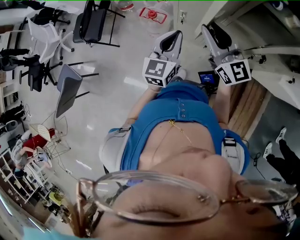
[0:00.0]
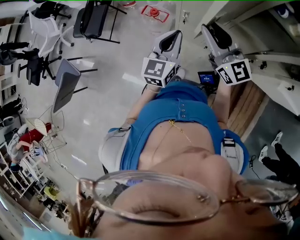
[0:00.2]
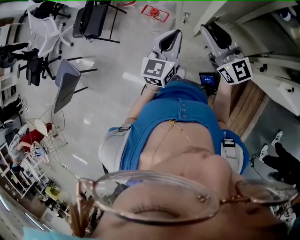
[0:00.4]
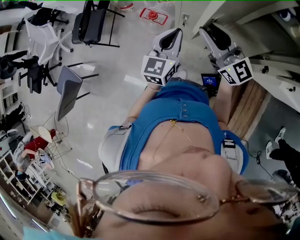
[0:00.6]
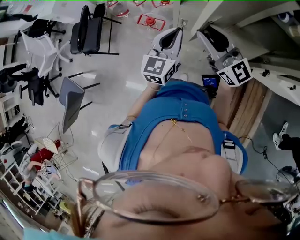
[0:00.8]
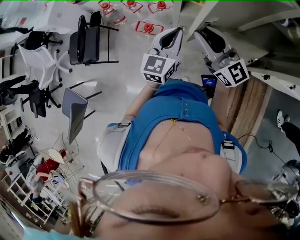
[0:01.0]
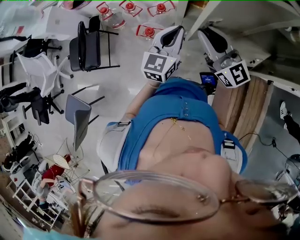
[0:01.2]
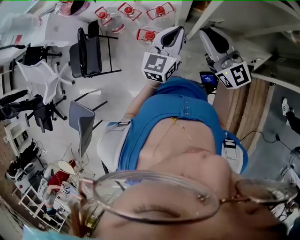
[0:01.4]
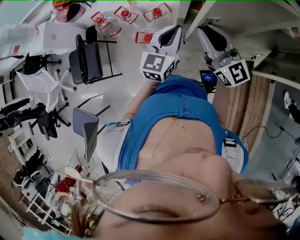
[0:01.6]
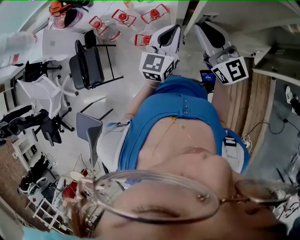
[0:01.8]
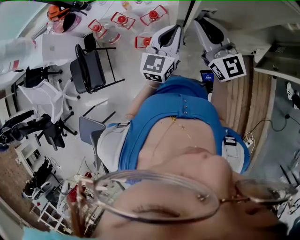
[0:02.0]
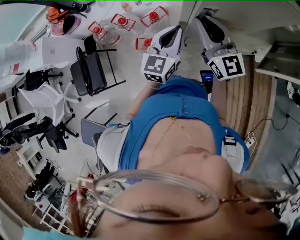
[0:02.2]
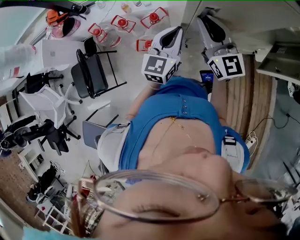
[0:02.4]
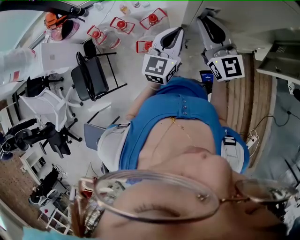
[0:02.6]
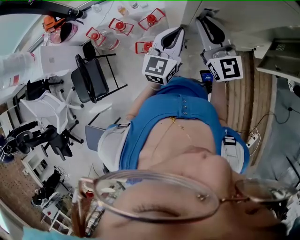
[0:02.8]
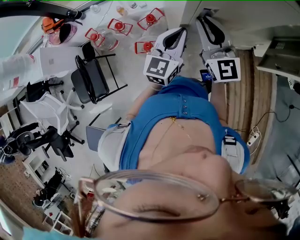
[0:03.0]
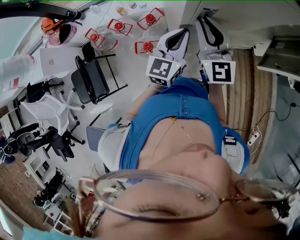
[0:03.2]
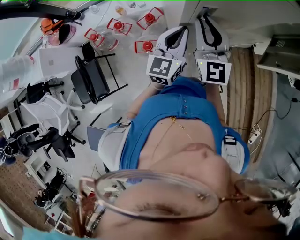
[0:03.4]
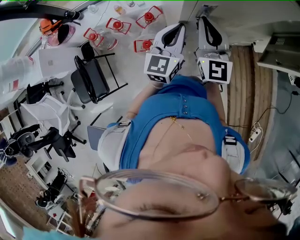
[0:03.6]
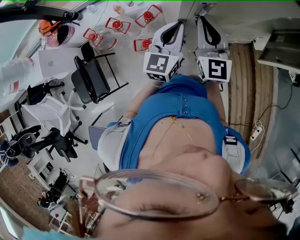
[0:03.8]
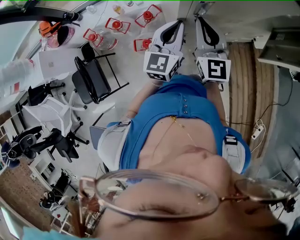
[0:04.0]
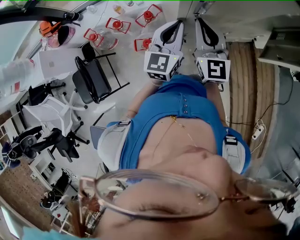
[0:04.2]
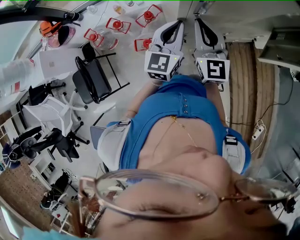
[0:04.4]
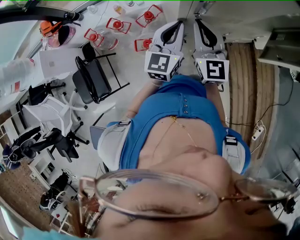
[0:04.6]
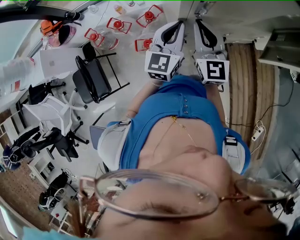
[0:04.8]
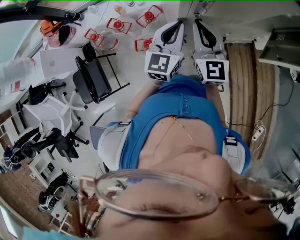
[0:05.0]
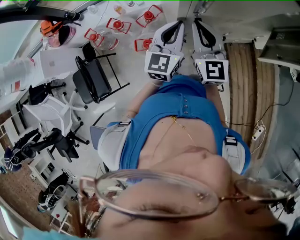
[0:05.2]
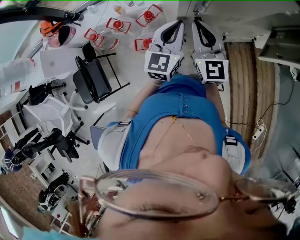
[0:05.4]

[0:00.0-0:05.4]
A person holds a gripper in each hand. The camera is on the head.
0:00.0 to 0:01.4: Both grippers move forward, some 20 cm.
0:01.4 to 0:02.8: The two grippers go about 5 cm forward. The right gripper changes its angle by roughly 30 degrees.
0:02.8 to 0:05.4: The grippers move only a little.

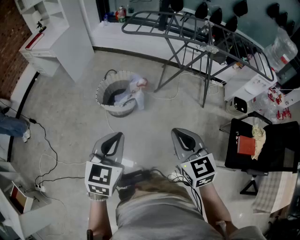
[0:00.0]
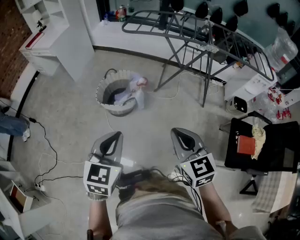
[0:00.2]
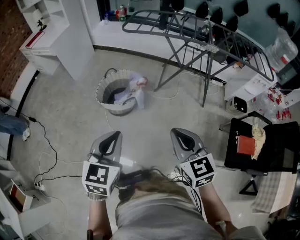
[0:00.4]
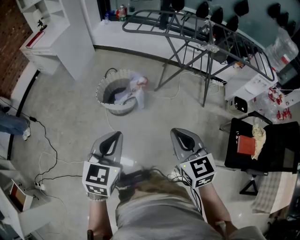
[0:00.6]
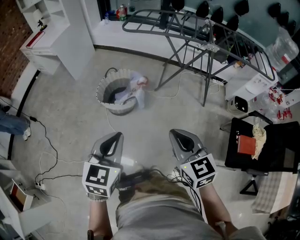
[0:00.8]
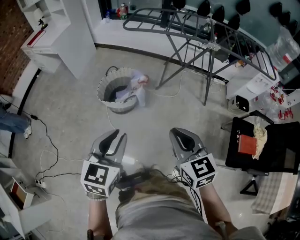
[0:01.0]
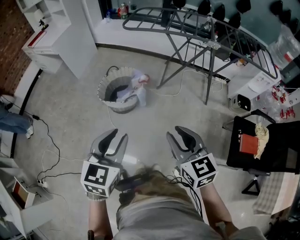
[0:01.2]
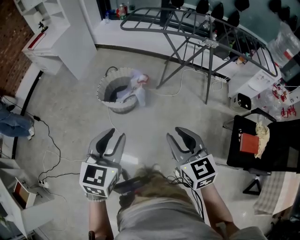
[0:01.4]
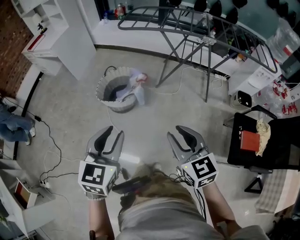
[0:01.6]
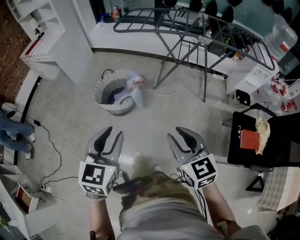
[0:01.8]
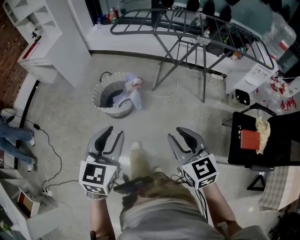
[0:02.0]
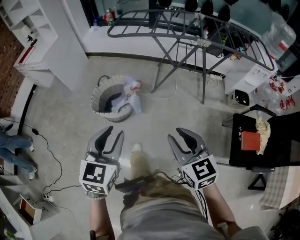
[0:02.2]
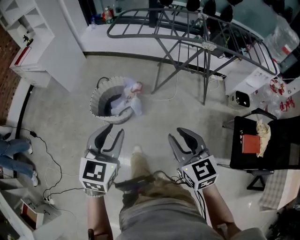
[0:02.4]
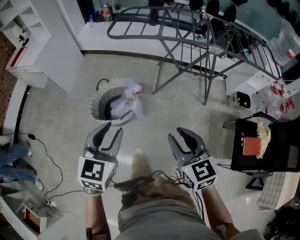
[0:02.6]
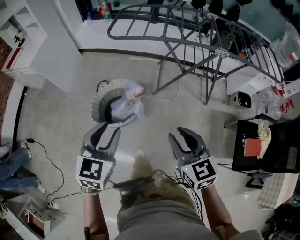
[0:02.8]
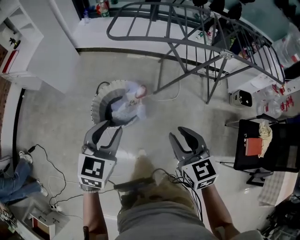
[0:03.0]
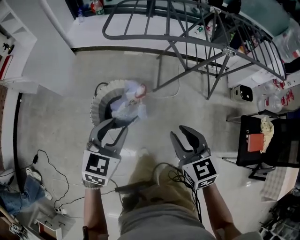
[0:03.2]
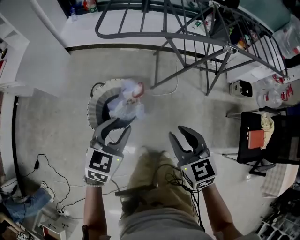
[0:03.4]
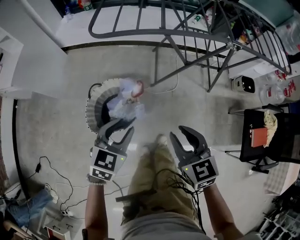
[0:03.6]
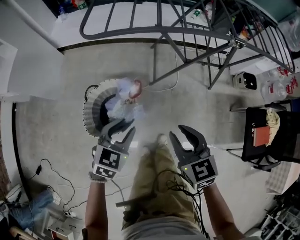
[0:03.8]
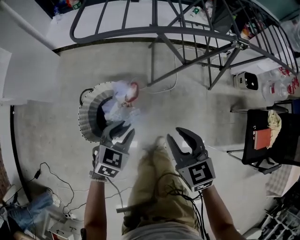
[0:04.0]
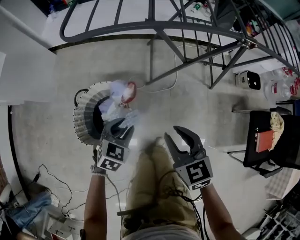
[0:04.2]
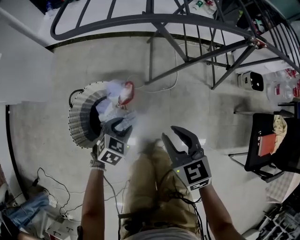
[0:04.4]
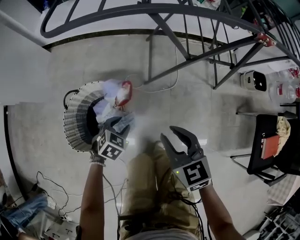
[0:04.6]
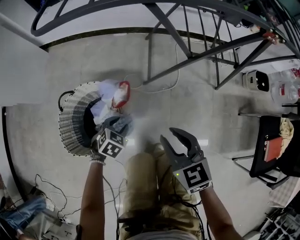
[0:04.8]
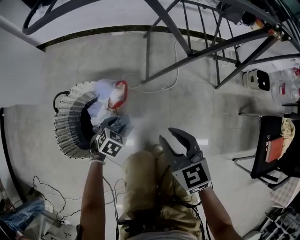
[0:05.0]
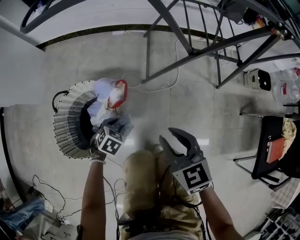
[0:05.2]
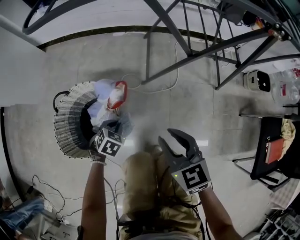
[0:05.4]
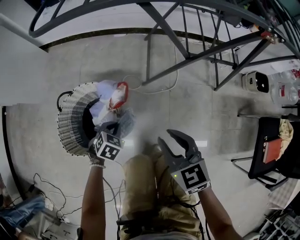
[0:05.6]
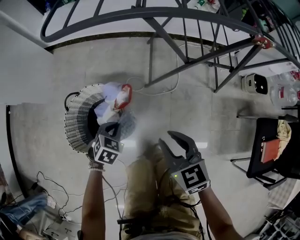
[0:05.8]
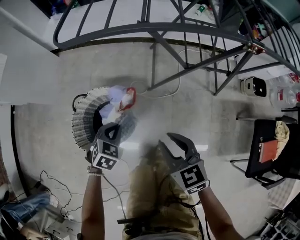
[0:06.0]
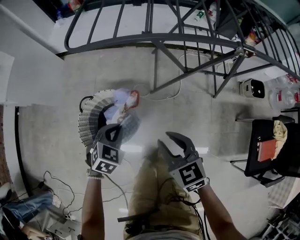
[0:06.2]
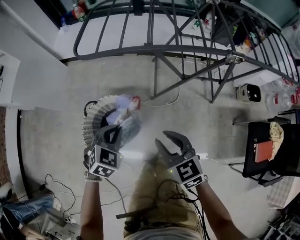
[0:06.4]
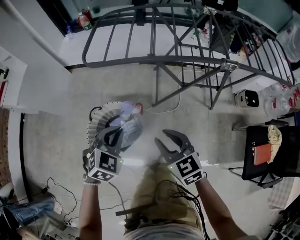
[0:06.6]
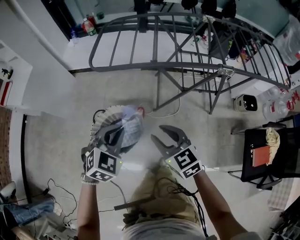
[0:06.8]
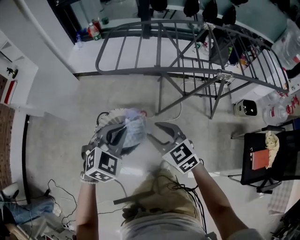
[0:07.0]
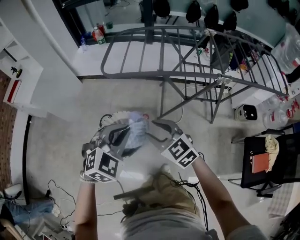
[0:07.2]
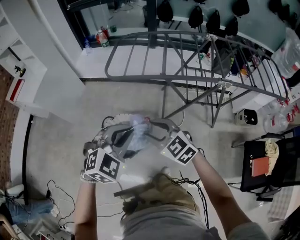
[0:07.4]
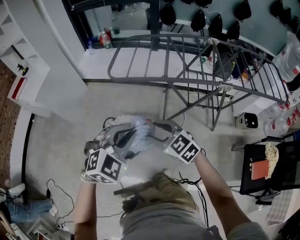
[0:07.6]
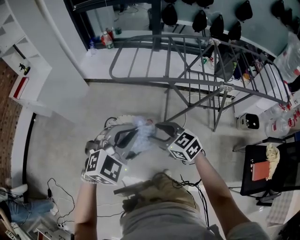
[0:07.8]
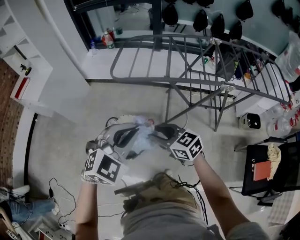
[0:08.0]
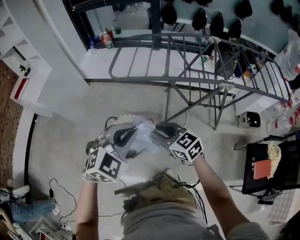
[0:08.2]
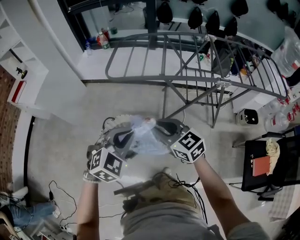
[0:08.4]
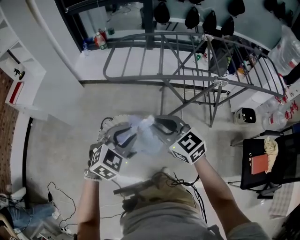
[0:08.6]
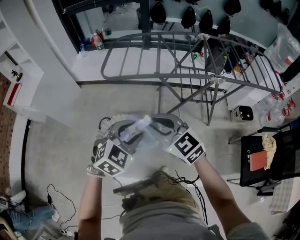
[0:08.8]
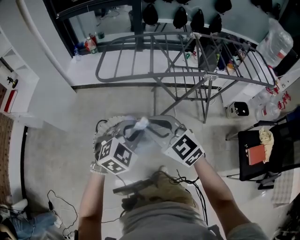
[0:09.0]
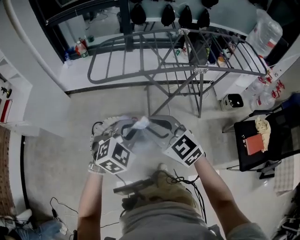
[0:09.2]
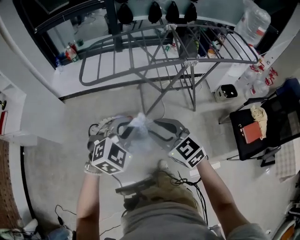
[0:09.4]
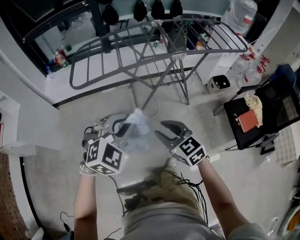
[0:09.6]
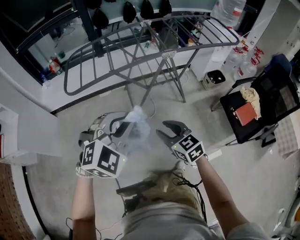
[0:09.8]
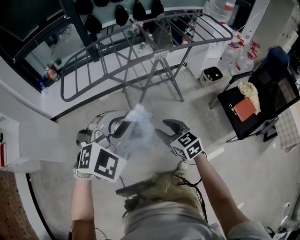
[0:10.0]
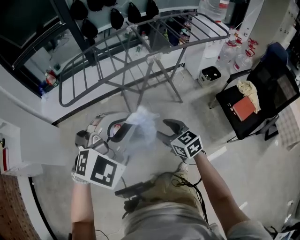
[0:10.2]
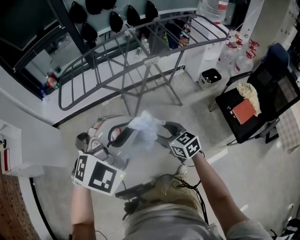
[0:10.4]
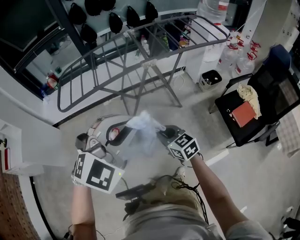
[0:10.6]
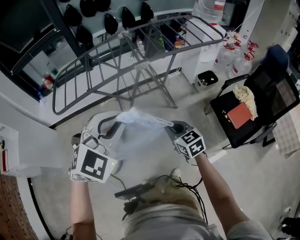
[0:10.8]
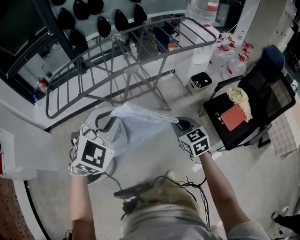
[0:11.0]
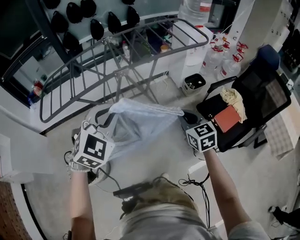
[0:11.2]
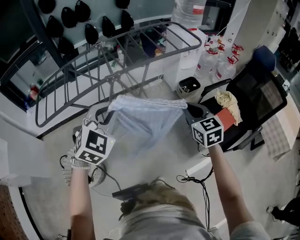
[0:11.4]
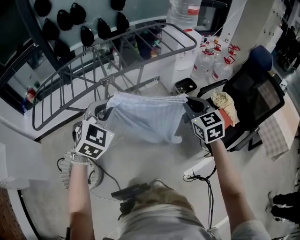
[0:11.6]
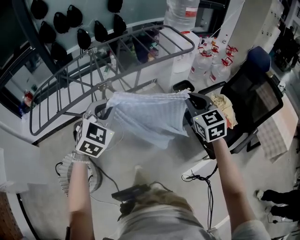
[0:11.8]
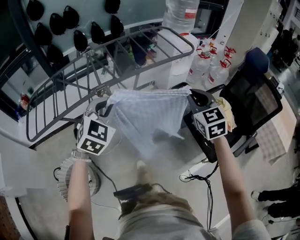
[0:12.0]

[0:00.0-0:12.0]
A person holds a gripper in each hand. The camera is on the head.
0:00.0 to 0:01.6: The left gripper opens. Meanwhile the right gripper changes place by some 5 cm, and opens its fingers.
0:01.6 to 0:03.0: Both grippers travel together forward, approximately 30 cm.
0:03.0 to 0:04.4: The two grippers go about 35 cm downward and forward. The left gripper changes its angle by roughly 30 degrees.
0:04.4 to 0:06.0: The left gripper goes downward and returns, about 20 cm each way, and closes; the right gripper goes downward and returns, roughly 10 cm each way.
0:06.0 to 0:07.6: The right gripper is displaced upward and to the left by about 25 cm, and swivels some 30 degrees. The left gripper travels upward by some 40 cm, and swivels some 40 degrees.
0:07.6 to 0:09.0: The right gripper goes some 10 cm upward, and closes. Meanwhile the left gripper shifts by roughly 5 cm, and opens, then closes again.
0:09.0 to 0:10.4: The right gripper shifts roughly 25 cm to the right and downward, rotates about 40 degrees, and opens its fingers. Meanwhile the left gripper is displaced to the right, upward and backward by approximately 25 cm, and swivels approximately 40 degrees.
0:10.4 to 0:12.0: The left gripper shifts approximately 30 cm forward and to the right, and rotates approximately 20 degrees; the right gripper heads to the right, forward and upward, covering approximately 50 cm, swivels about 40 degrees, and closes.

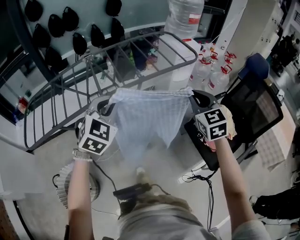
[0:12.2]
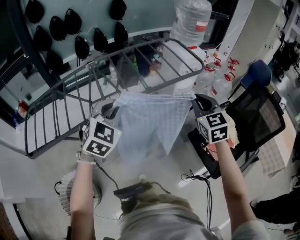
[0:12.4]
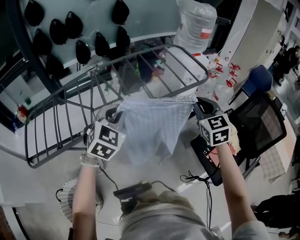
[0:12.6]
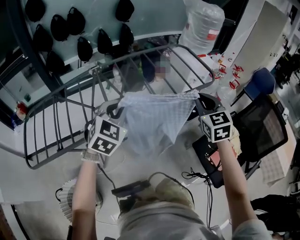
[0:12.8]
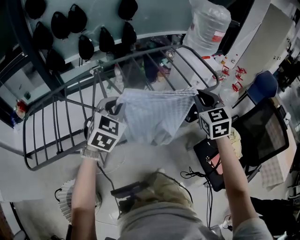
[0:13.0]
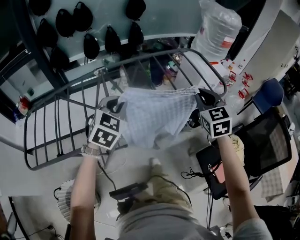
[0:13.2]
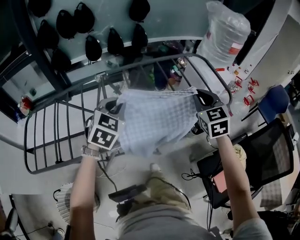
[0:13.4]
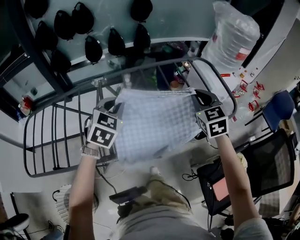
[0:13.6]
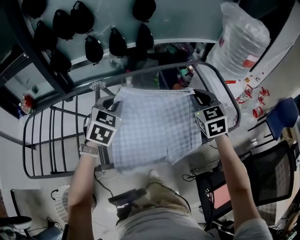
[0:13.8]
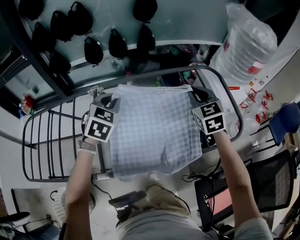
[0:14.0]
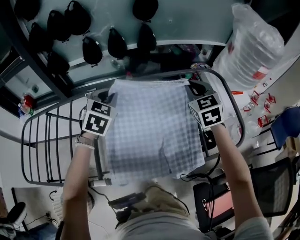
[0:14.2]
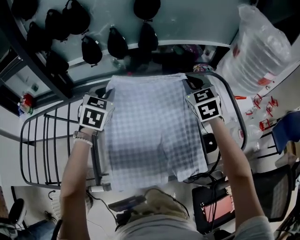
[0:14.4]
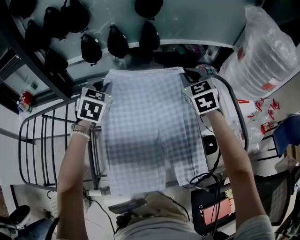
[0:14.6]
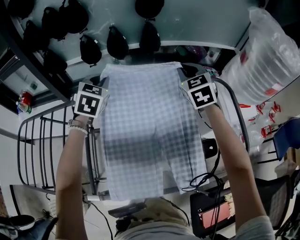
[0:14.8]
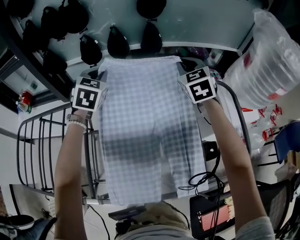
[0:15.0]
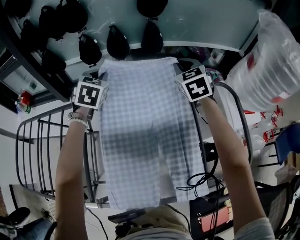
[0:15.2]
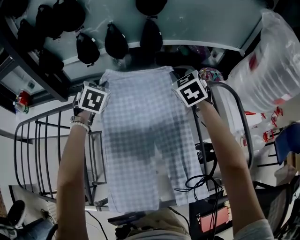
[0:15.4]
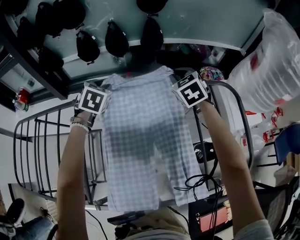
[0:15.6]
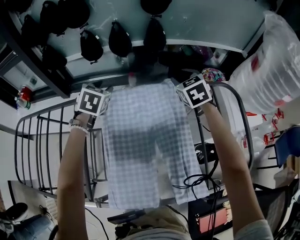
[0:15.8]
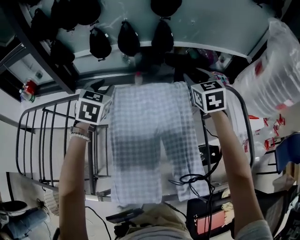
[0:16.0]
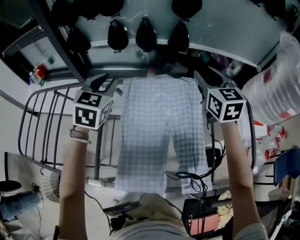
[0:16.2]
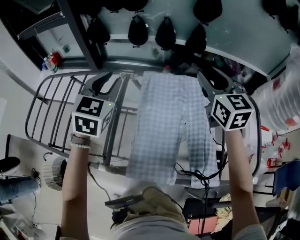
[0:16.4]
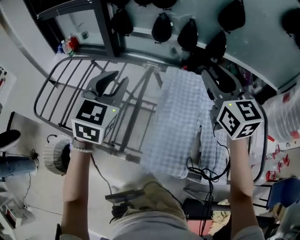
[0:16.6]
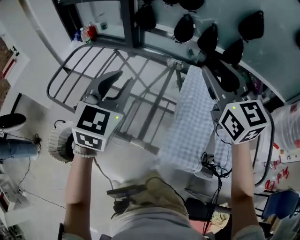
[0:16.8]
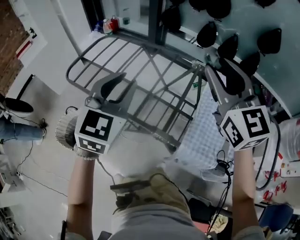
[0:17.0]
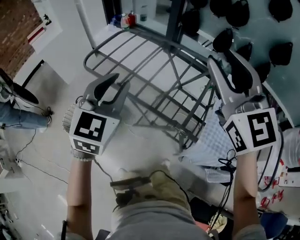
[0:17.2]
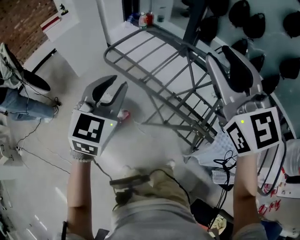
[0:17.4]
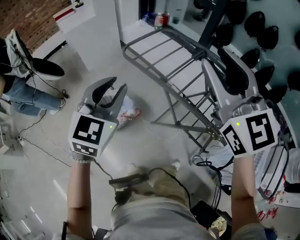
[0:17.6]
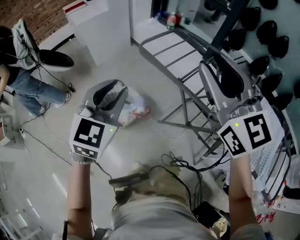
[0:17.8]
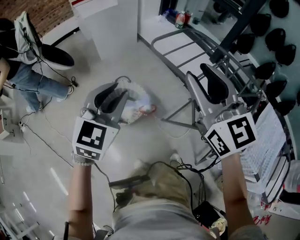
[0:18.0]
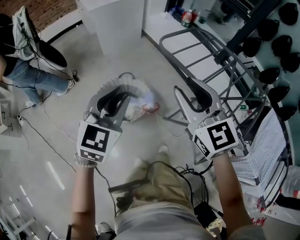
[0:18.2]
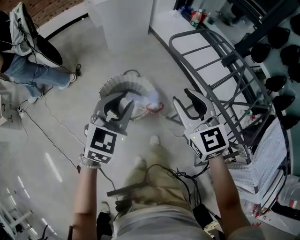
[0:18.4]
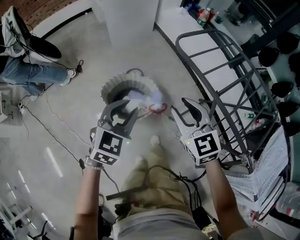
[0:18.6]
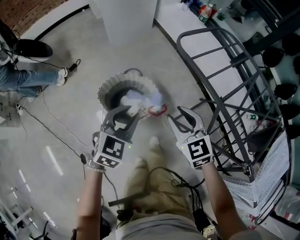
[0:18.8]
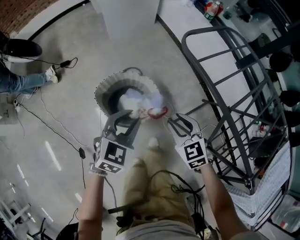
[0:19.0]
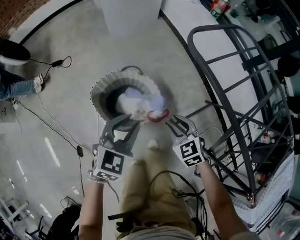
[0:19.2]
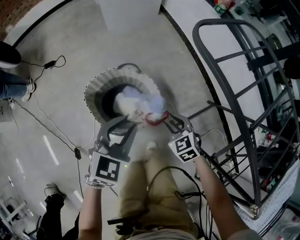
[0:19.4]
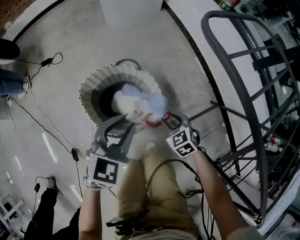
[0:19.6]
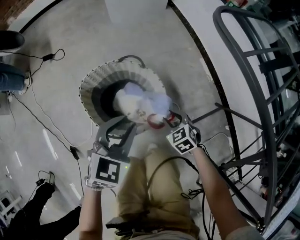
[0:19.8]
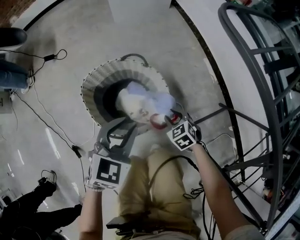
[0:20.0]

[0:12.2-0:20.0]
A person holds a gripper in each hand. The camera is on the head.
0:12.2 to 0:13.8: Both grippers move forward, some 40 cm. The left gripper swivels roughly 20 degrees.
0:13.8 to 0:15.4: Both grippers travel together forward, about 30 cm. The left gripper turns by roughly 20 degrees.
0:15.4 to 0:16.8: The right gripper is displaced to the left, backward and upward by roughly 40 cm, angles its fingers upward, by roughly 30 degrees, and opens up. The left gripper goes roughly 40 cm backward, to the left and upward, and swivels some 30 degrees.
0:16.8 to 0:18.4: Both grippers are carried about 60 cm. The left gripper changes its angle by roughly 30 degrees; the right gripper turns by approximately 40 degrees.
0:18.4 to 0:20.0: The left gripper heads downward, covering approximately 35 cm. Meanwhile the right gripper travels downward by roughly 60 cm, and tilts its fingers some 40 degrees downward.
